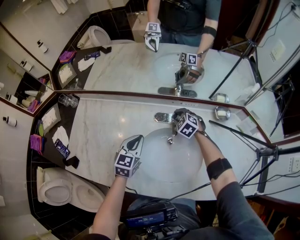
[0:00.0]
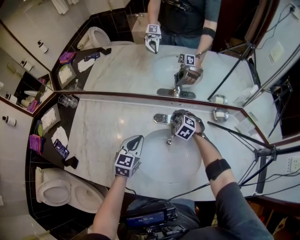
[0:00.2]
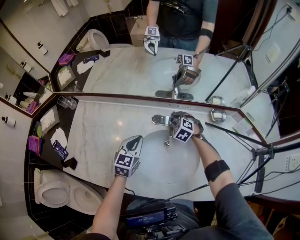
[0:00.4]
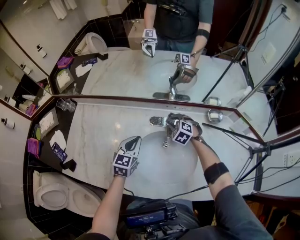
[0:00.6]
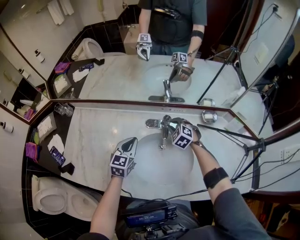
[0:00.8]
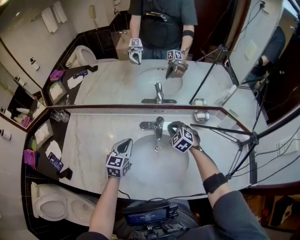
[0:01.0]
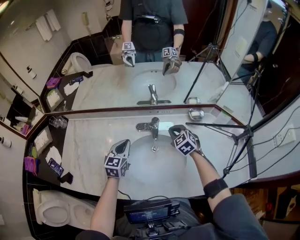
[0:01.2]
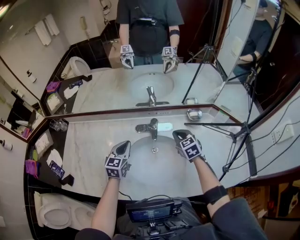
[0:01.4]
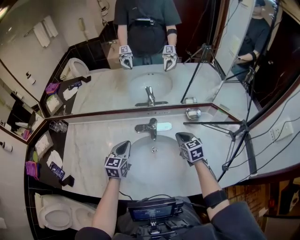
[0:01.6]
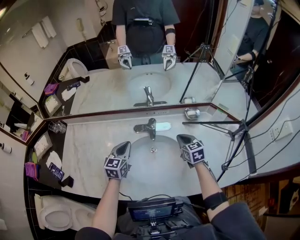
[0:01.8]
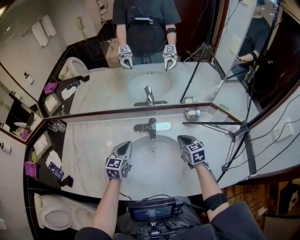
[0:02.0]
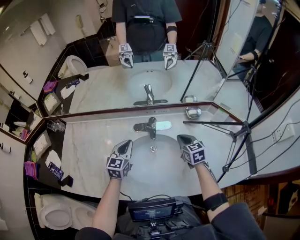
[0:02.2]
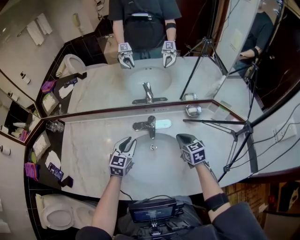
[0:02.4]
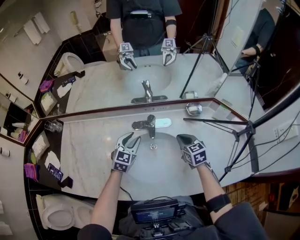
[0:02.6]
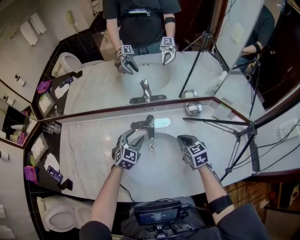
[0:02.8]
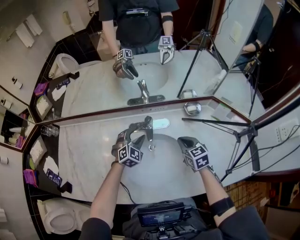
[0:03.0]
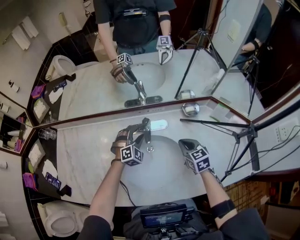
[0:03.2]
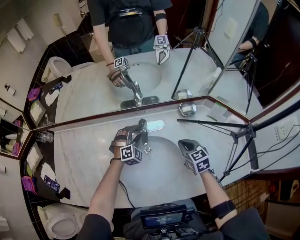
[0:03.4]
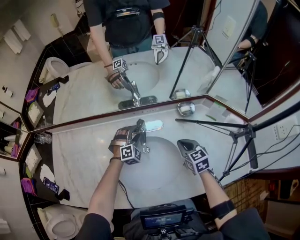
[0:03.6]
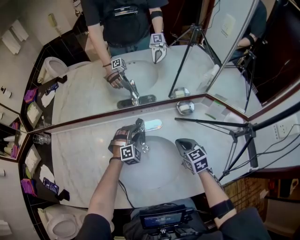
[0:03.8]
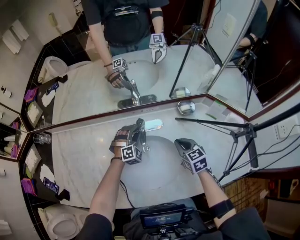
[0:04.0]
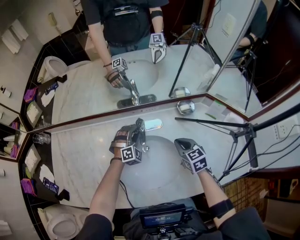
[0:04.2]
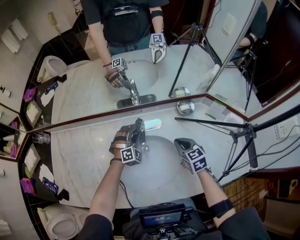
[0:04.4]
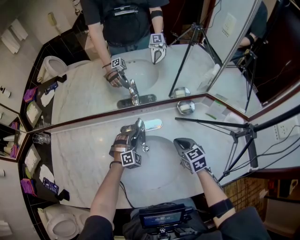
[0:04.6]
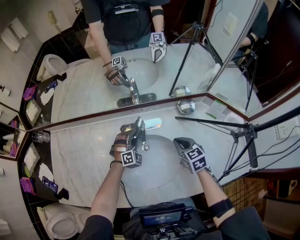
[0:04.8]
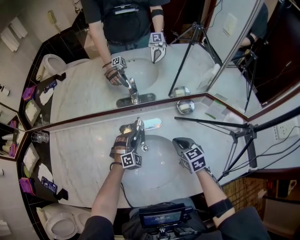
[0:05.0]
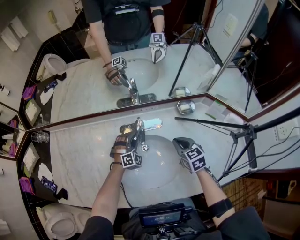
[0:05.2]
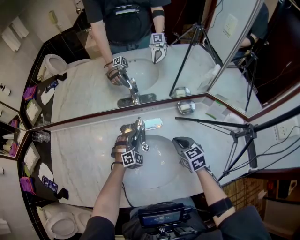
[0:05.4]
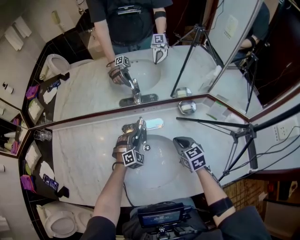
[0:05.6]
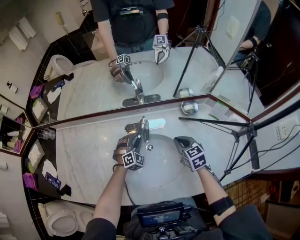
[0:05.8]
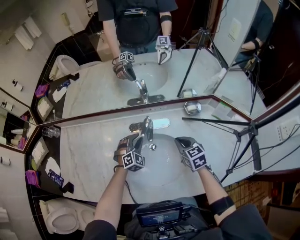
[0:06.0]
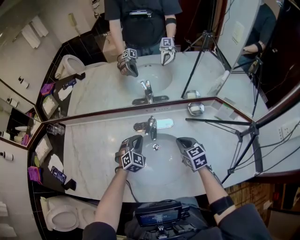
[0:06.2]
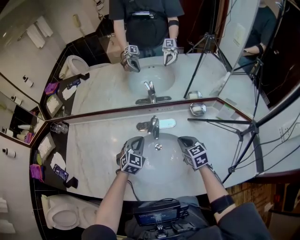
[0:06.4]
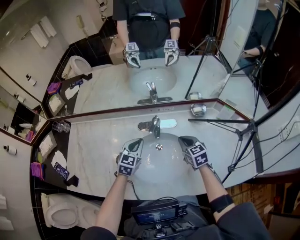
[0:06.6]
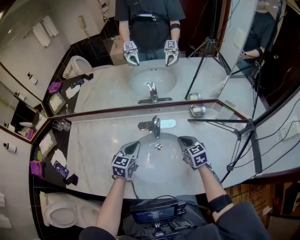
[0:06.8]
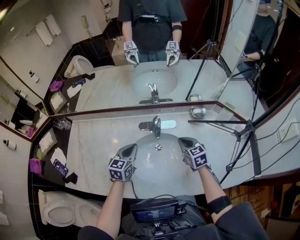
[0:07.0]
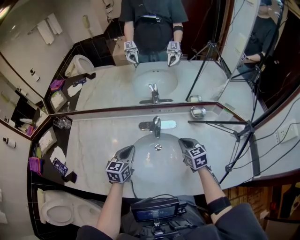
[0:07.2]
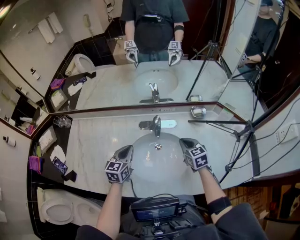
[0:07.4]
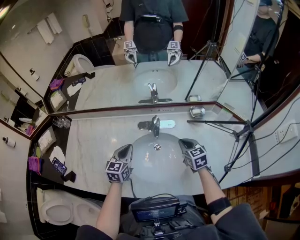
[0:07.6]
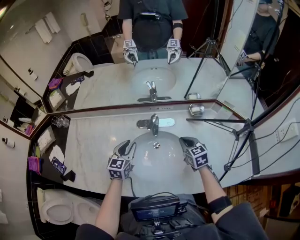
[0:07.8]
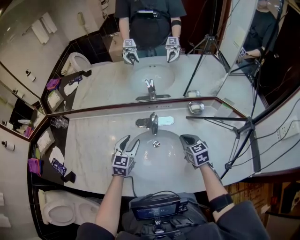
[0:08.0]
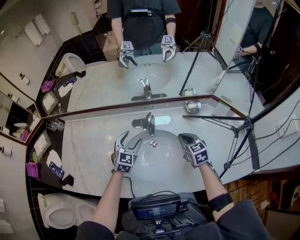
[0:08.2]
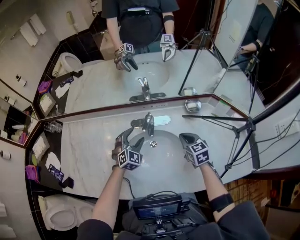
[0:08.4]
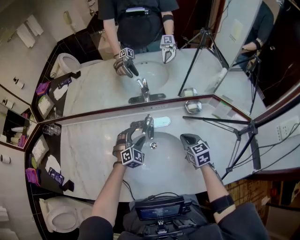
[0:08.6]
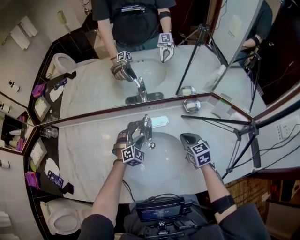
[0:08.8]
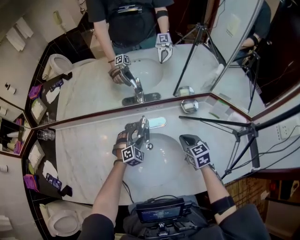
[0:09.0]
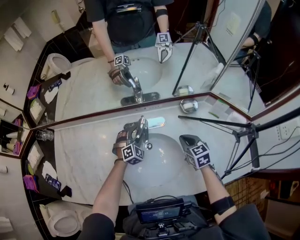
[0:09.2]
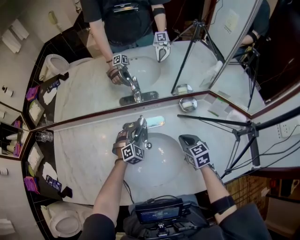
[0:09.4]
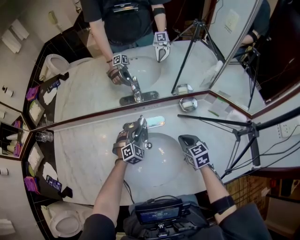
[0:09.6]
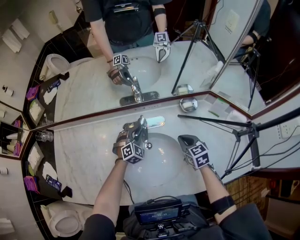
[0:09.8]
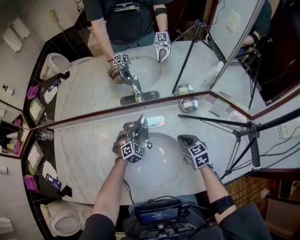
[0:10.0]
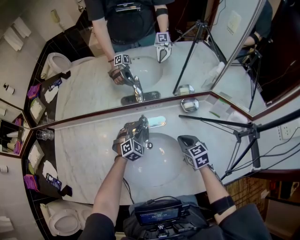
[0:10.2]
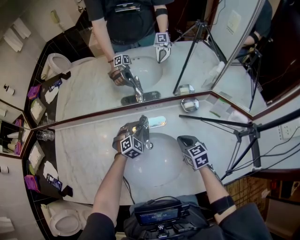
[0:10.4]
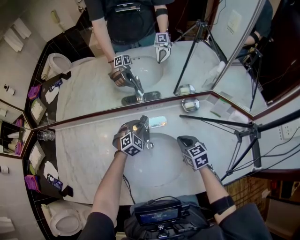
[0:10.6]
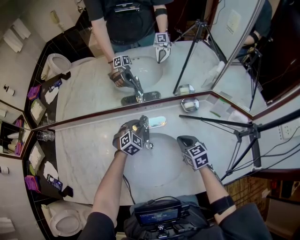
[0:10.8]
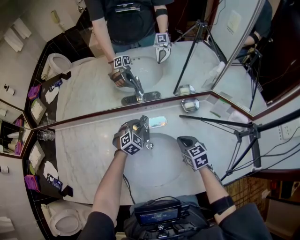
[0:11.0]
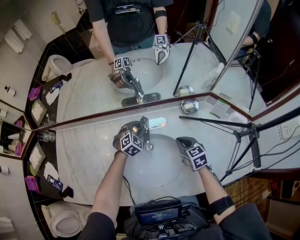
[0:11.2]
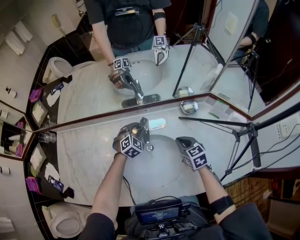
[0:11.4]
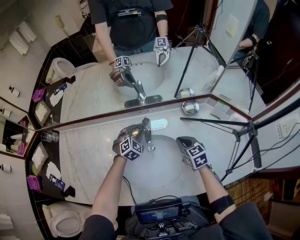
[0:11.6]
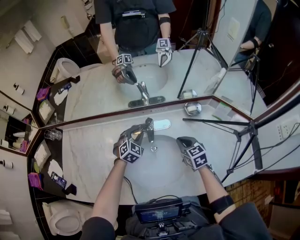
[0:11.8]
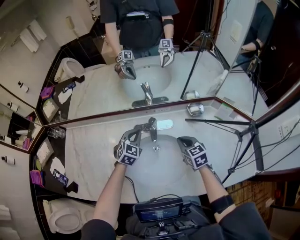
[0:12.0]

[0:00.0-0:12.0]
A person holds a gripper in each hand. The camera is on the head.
0:00.0 to 0:01.6: The left gripper ends up about 5 cm from where it was; the right gripper goes some 25 cm backward, to the right and upward, swivels some 50 degrees, and closes.
0:01.6 to 0:03.0: The left gripper is displaced to the right, forward and downward by about 15 cm, rolls clockwise, seen from behind, by about 50 degrees, and opens.
0:03.0 to 0:04.4: The left gripper goes roughly 5 cm downward, and changes its angle by about 20 degrees.
0:04.4 to 0:06.0: The left gripper is displaced backward by about 5 cm.
0:06.0 to 0:07.6: The left gripper is displaced upward, to the left and backward by approximately 15 cm, and rotates around the line of its fingers by approximately 50 degrees, counterclockwise from behind.
0:07.6 to 0:09.0: The right gripper is displaced to the right by roughly 5 cm. The left gripper shifts roughly 20 cm downward, forward and to the right, twists about 60 degrees clockwise, seen from behind, and opens up.
0:09.0 to 0:10.4: The left gripper closes its fingers.
0:10.4 to 0:12.0: The left gripper is displaced upward and to the left by about 10 cm, and rotates some 20 degrees.

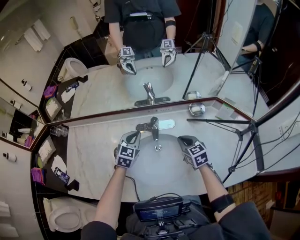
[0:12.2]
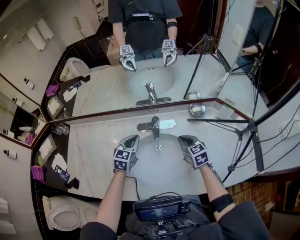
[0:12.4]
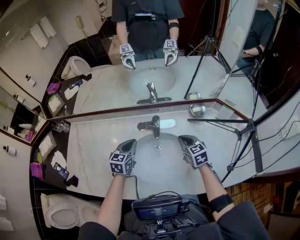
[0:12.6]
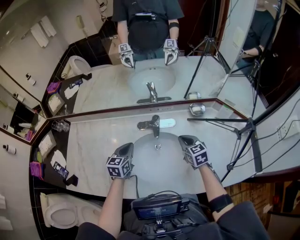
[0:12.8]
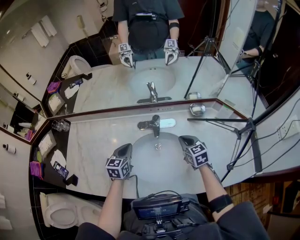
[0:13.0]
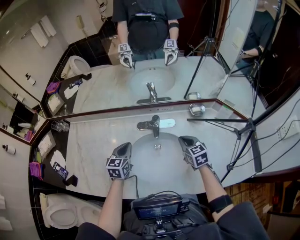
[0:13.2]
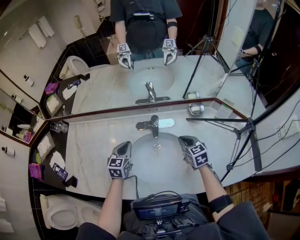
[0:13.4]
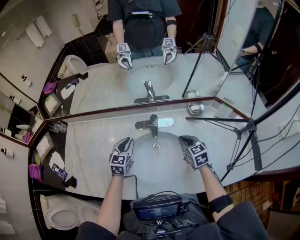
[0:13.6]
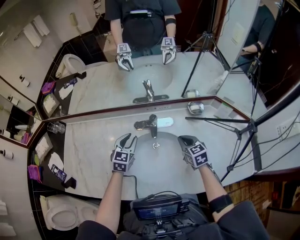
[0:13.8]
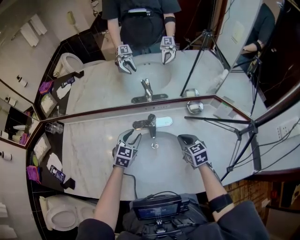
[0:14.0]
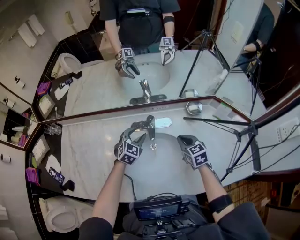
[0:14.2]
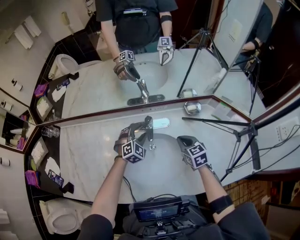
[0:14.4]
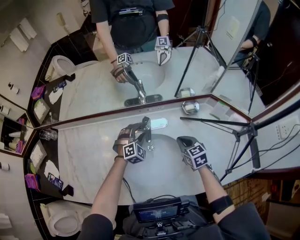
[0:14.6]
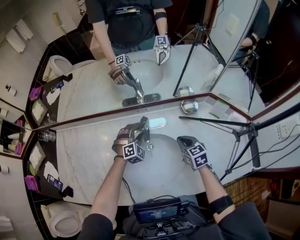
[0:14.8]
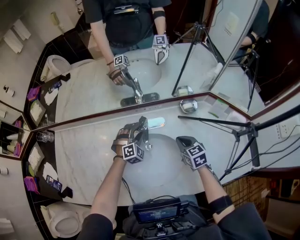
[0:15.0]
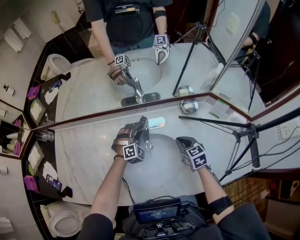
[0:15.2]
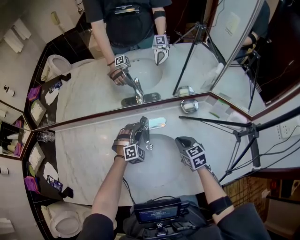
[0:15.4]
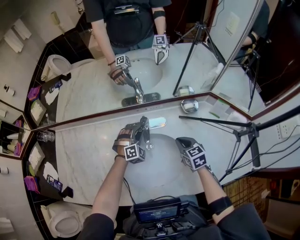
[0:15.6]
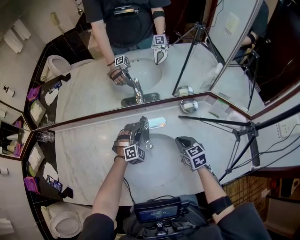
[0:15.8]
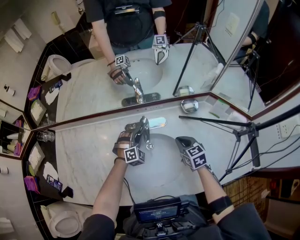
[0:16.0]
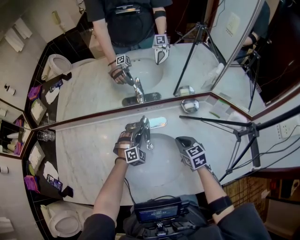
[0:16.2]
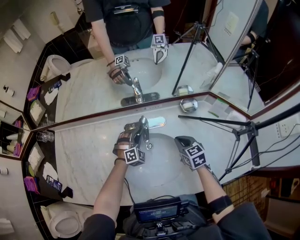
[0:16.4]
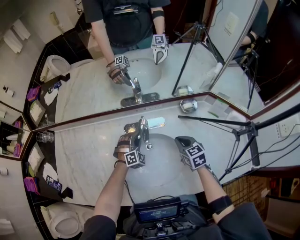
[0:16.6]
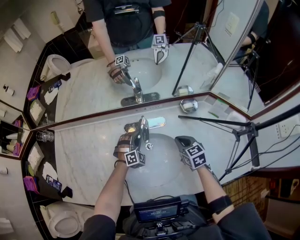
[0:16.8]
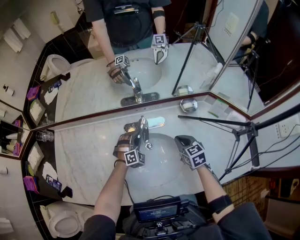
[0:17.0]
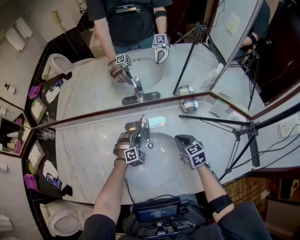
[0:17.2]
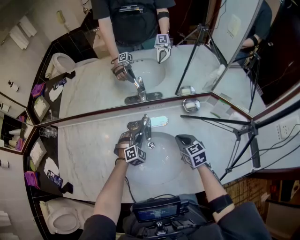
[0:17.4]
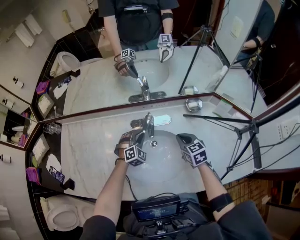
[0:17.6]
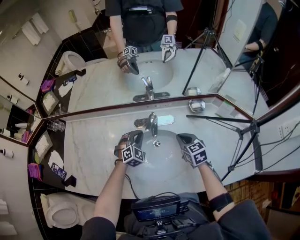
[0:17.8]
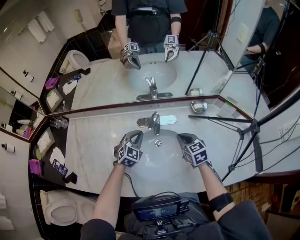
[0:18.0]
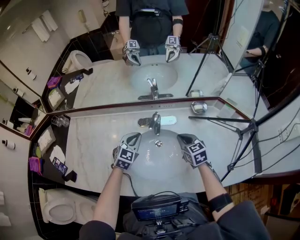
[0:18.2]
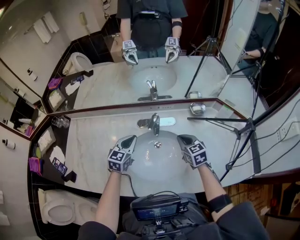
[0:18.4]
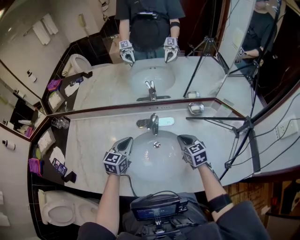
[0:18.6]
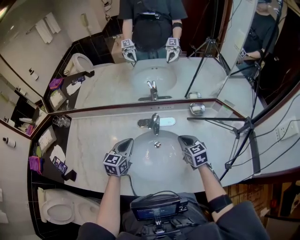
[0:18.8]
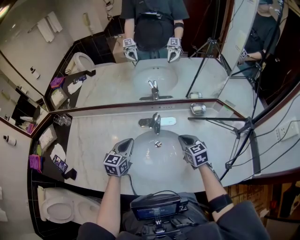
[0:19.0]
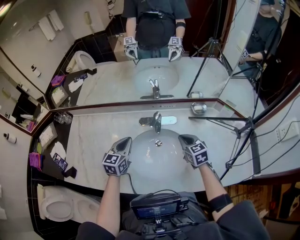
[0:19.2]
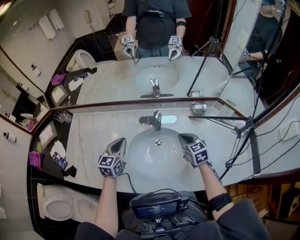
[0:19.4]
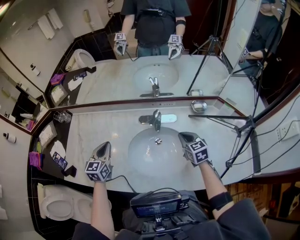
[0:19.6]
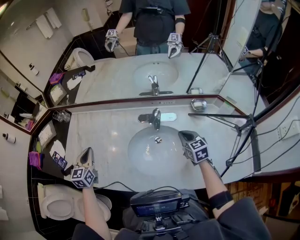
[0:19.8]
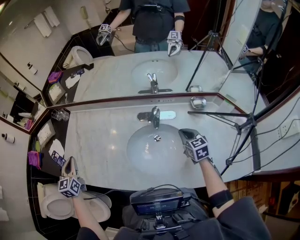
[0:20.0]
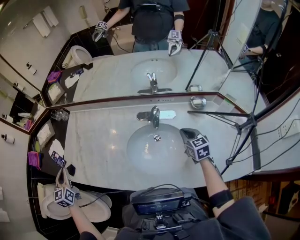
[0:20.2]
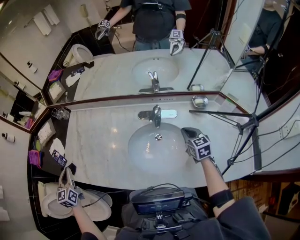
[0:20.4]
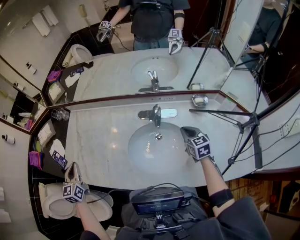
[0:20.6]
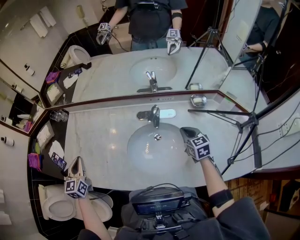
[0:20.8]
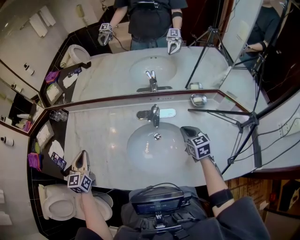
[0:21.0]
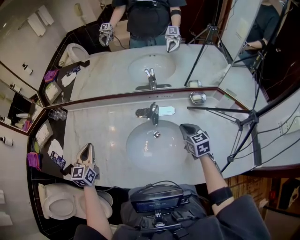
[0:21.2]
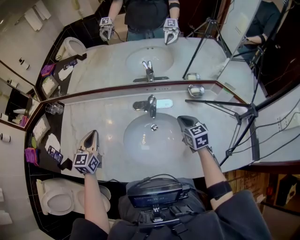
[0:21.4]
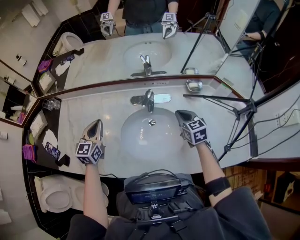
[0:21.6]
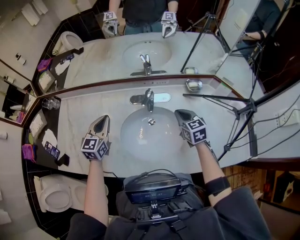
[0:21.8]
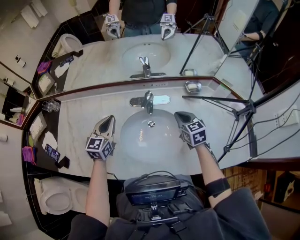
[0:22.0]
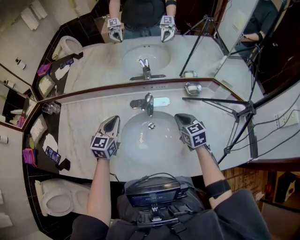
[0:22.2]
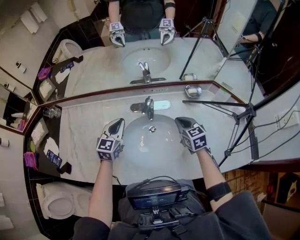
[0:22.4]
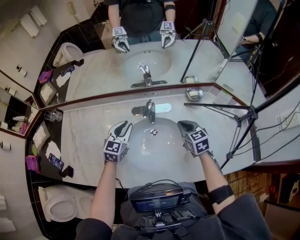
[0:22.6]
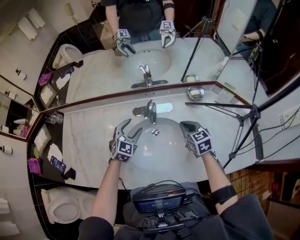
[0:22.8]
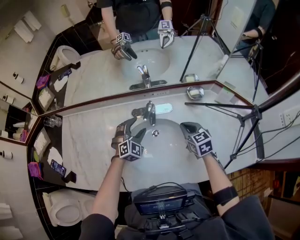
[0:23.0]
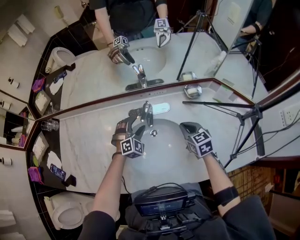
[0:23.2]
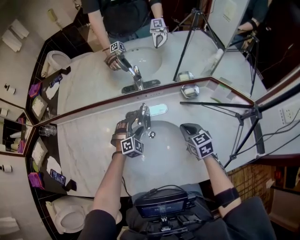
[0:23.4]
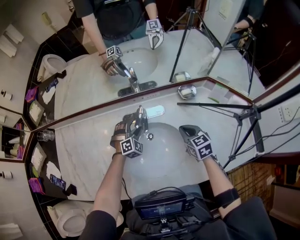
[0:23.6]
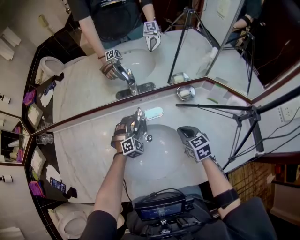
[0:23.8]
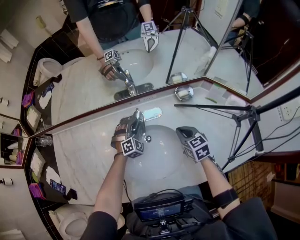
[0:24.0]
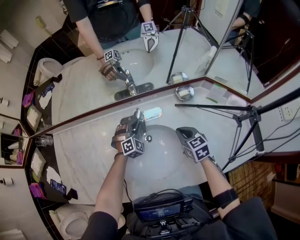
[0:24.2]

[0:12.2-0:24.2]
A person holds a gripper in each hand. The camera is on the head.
0:13.8 to 0:15.2: The left gripper shifts approximately 15 cm downward, to the right and forward, and twists roughly 50 degrees clockwise, seen from behind.
0:15.2 to 0:16.6: The grippers move only a little.
0:16.6 to 0:18.2: The left gripper heads upward, backward and to the left, covering roughly 15 cm, and twists approximately 40 degrees counterclockwise, seen from behind; the right gripper changes place by some 5 cm.
0:18.2 to 0:19.8: The left gripper shifts approximately 25 cm to the left, and changes its angle by about 40 degrees.
0:19.8 to 0:21.2: The left gripper reaches roughly 15 cm to the left, then returns.
0:21.2 to 0:22.6: The left gripper goes approximately 20 cm to the right, and swivels some 30 degrees.
0:22.6 to 0:24.2: The right gripper ends up roughly 5 cm from where it was; the left gripper travels downward, to the right and forward by approximately 20 cm, twists some 50 degrees clockwise, seen from behind, and opens, then closes once more.
